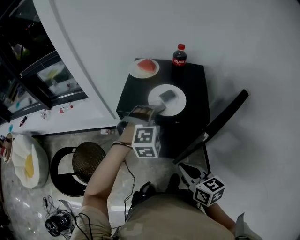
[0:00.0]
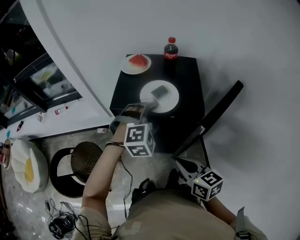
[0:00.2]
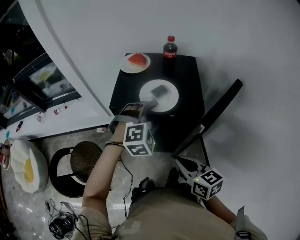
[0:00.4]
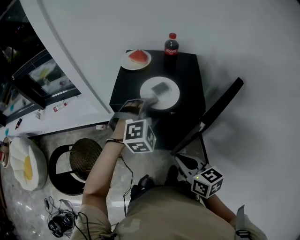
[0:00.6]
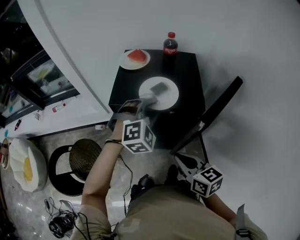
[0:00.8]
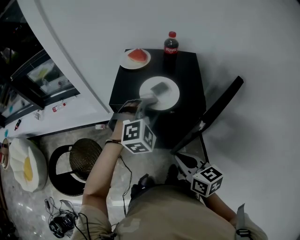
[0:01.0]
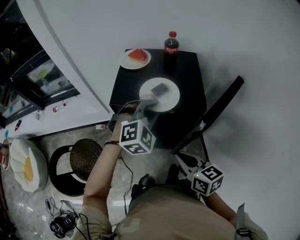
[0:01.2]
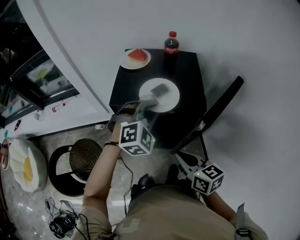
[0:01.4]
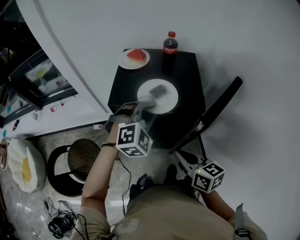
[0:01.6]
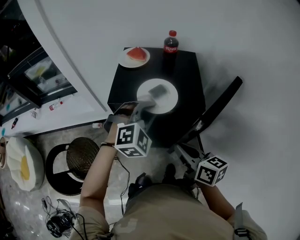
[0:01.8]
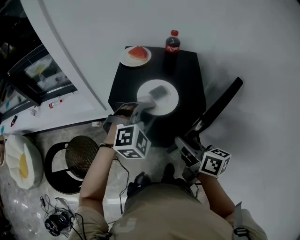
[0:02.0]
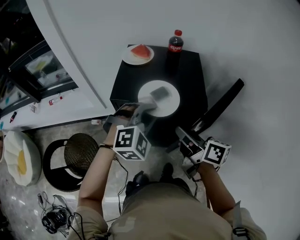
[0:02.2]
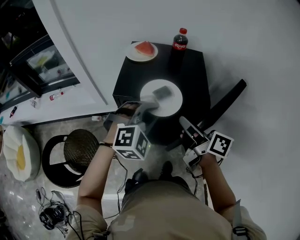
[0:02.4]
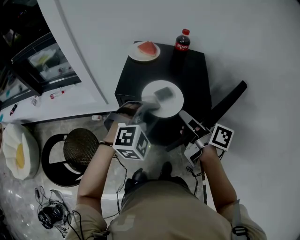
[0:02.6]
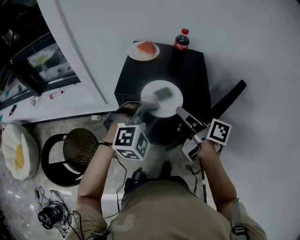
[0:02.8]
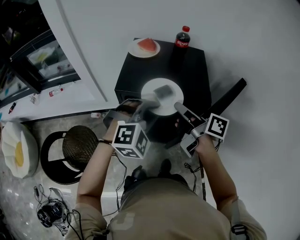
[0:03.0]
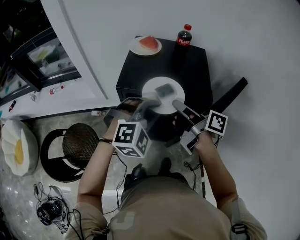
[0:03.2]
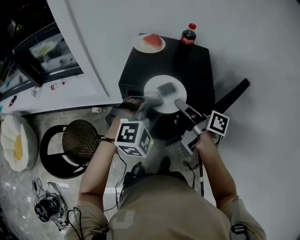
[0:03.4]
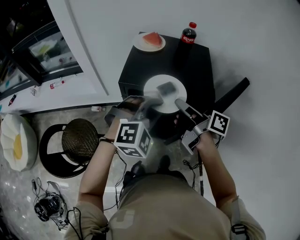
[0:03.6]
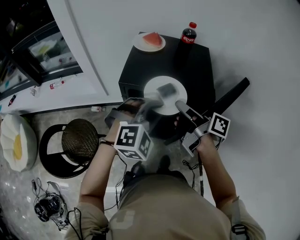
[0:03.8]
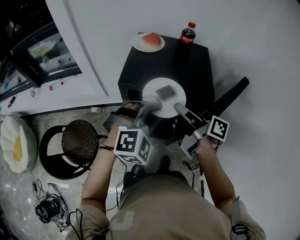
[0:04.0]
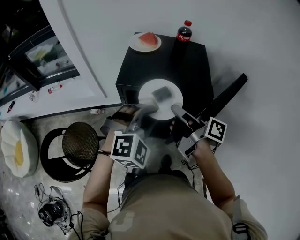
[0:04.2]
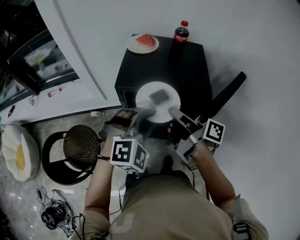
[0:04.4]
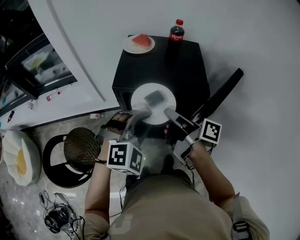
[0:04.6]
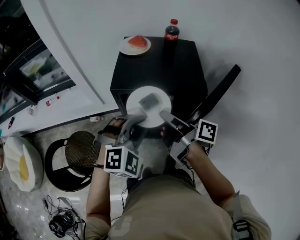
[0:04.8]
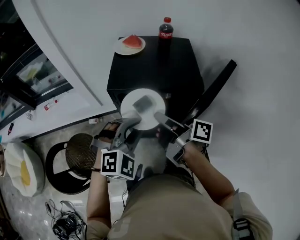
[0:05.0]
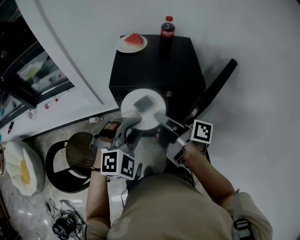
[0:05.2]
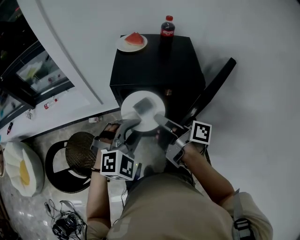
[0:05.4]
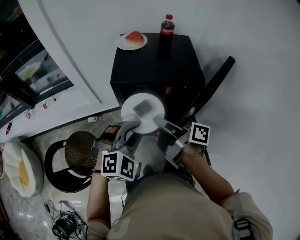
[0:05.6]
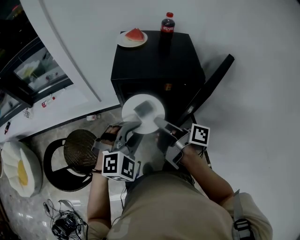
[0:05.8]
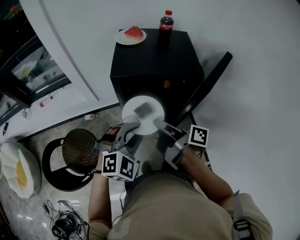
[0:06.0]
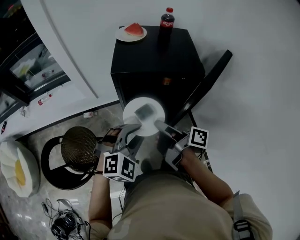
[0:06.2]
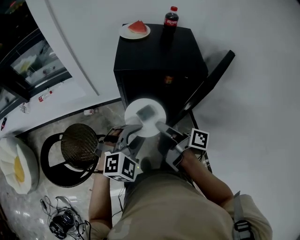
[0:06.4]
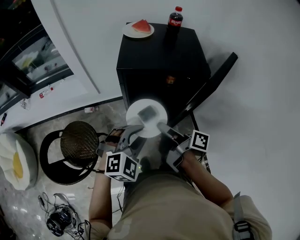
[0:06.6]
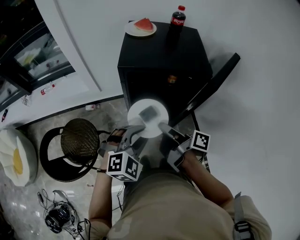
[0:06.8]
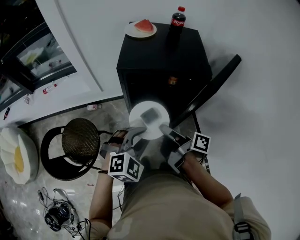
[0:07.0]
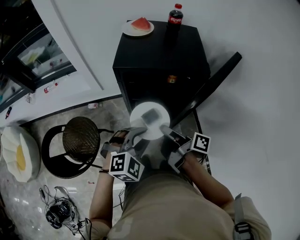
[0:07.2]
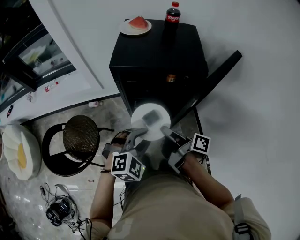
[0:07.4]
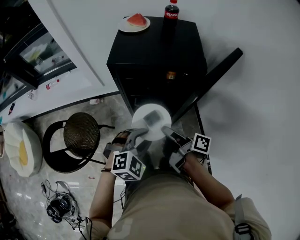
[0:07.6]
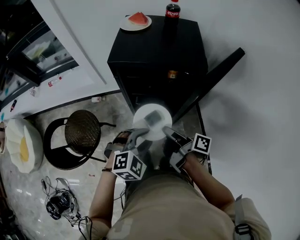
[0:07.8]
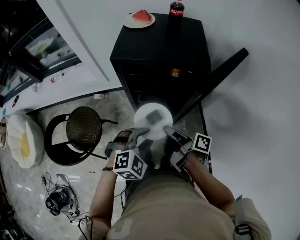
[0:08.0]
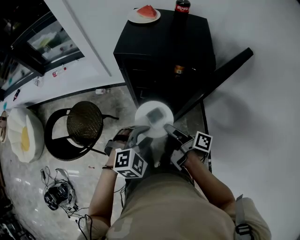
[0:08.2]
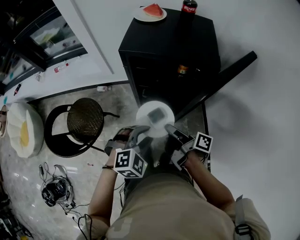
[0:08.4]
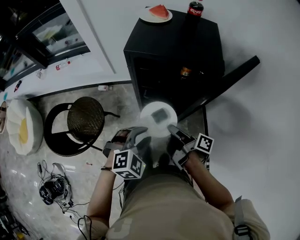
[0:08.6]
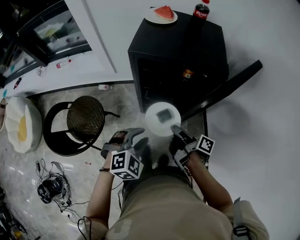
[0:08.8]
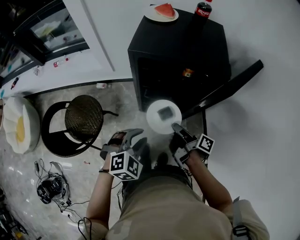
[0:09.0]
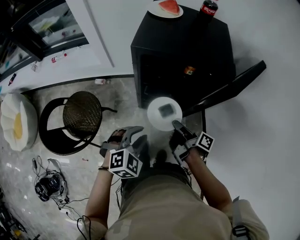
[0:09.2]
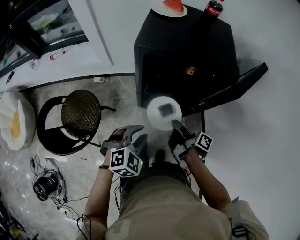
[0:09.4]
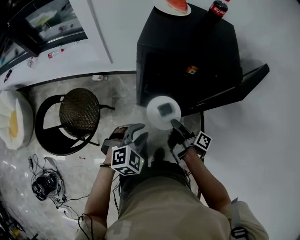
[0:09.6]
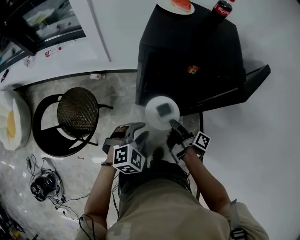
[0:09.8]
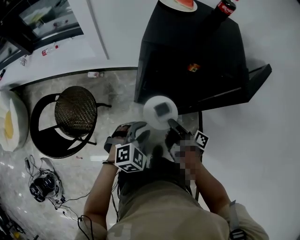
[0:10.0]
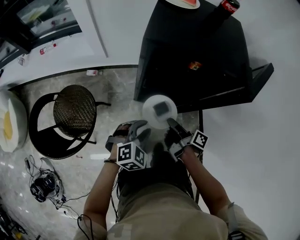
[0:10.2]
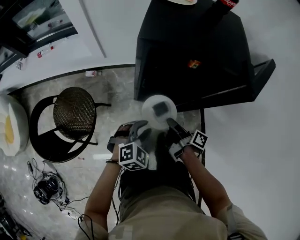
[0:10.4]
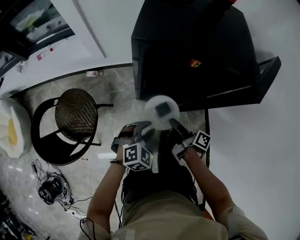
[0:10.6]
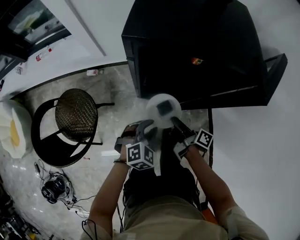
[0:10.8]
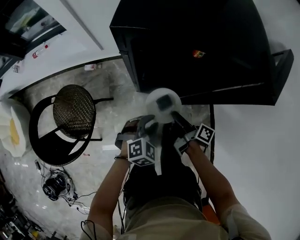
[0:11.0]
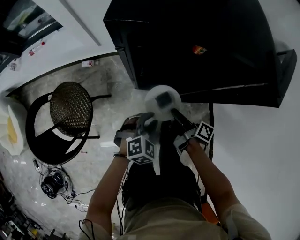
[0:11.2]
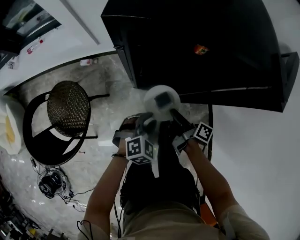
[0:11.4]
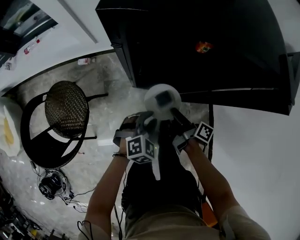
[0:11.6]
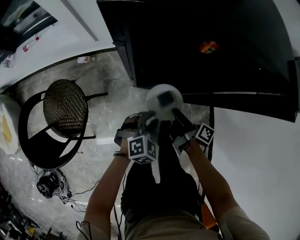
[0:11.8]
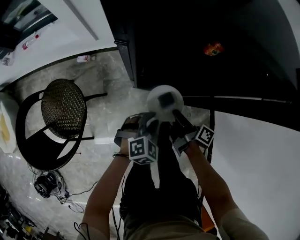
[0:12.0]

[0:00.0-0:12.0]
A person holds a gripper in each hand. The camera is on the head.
0:00.0 to 0:01.6: The left gripper closes its fingers.
0:01.6 to 0:03.0: The right gripper is displaced forward by approximately 10 cm, and turns by approximately 40 degrees. Meanwhile the left gripper ends up roughly 5 cm from where it was.
0:03.0 to 0:04.4: The grippers make only small movements.
0:04.4 to 0:06.0: Both grippers travel together backward, to the left and downward, about 10 cm.
0:06.0 to 0:07.6: The left gripper shifts about 10 cm downward, to the right and backward, while the right gripper heads downward and to the right, covering roughly 10 cm.
0:07.6 to 0:09.0: The left gripper moves to the left, about 5 cm. Meanwhile the right gripper heads downward, covering about 5 cm.
0:09.0 to 0:10.4: Both grippers travel together downward, some 10 cm.
0:10.4 to 0:12.0: The grippers both shift downward by approximately 15 cm.

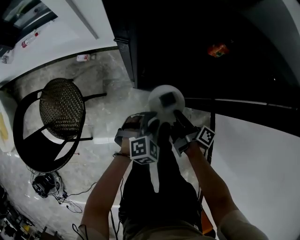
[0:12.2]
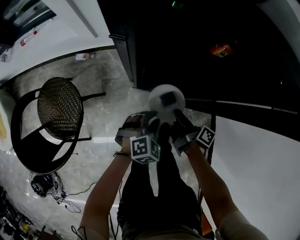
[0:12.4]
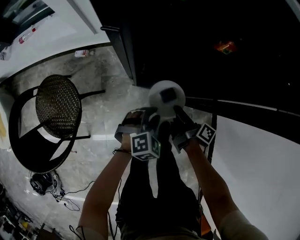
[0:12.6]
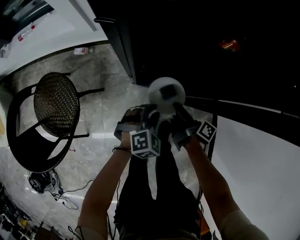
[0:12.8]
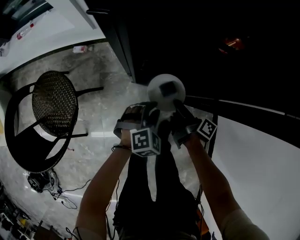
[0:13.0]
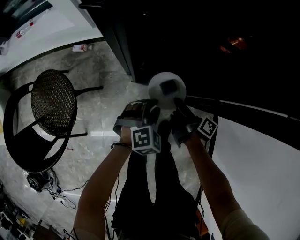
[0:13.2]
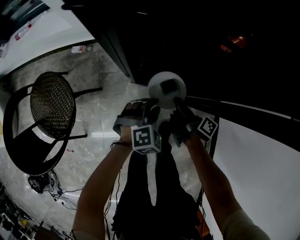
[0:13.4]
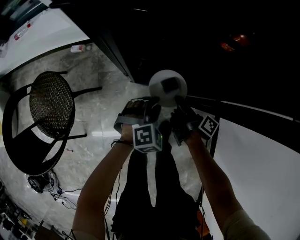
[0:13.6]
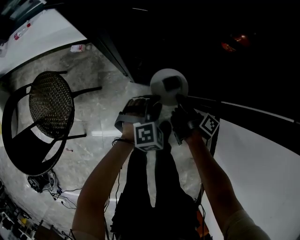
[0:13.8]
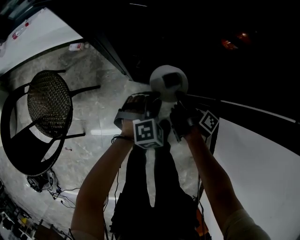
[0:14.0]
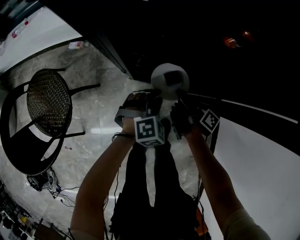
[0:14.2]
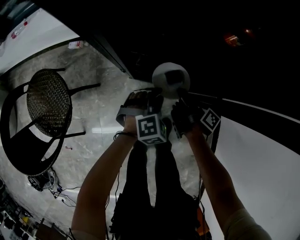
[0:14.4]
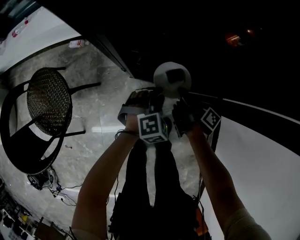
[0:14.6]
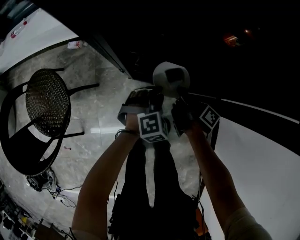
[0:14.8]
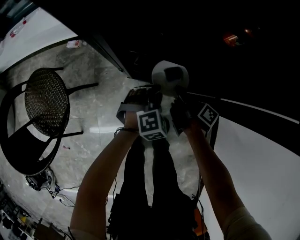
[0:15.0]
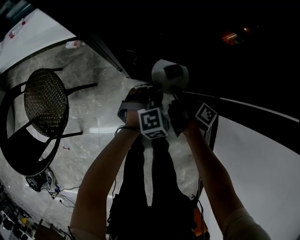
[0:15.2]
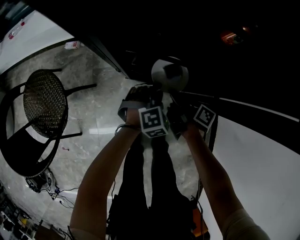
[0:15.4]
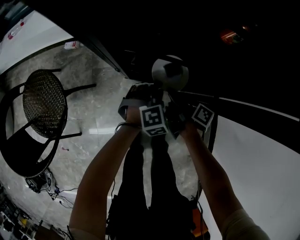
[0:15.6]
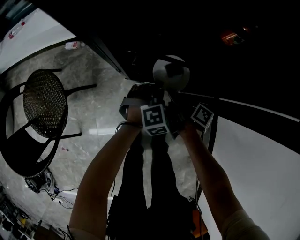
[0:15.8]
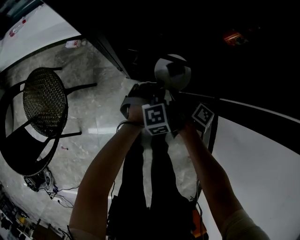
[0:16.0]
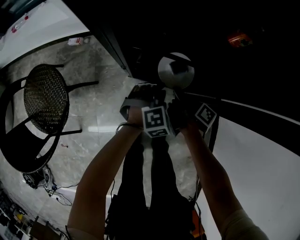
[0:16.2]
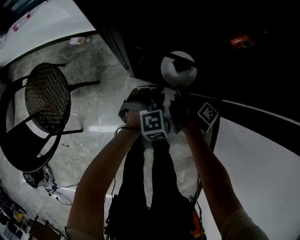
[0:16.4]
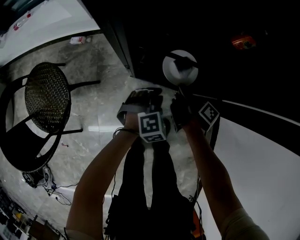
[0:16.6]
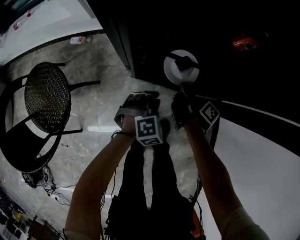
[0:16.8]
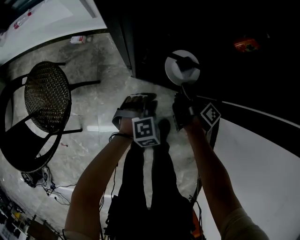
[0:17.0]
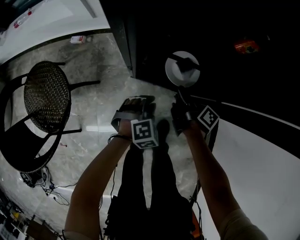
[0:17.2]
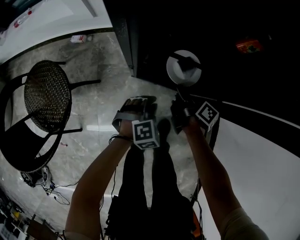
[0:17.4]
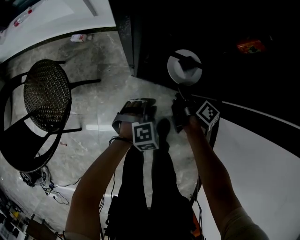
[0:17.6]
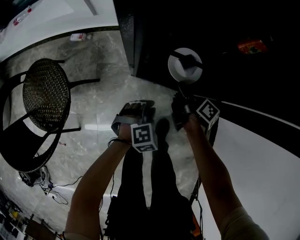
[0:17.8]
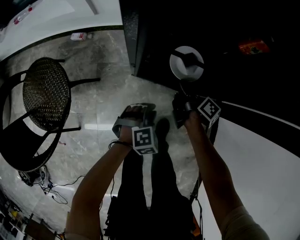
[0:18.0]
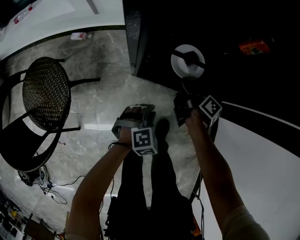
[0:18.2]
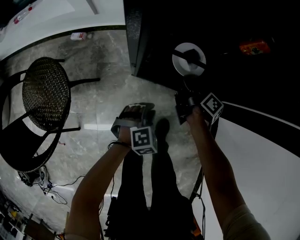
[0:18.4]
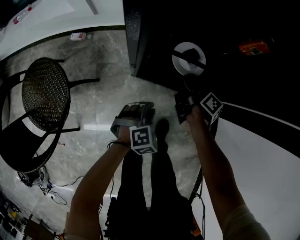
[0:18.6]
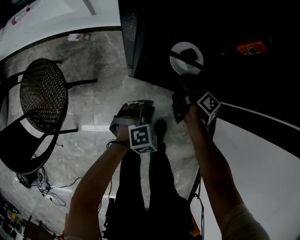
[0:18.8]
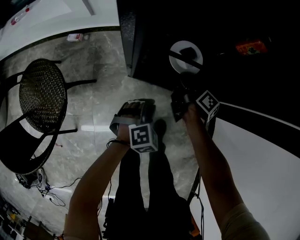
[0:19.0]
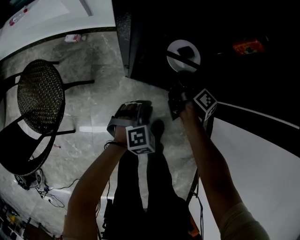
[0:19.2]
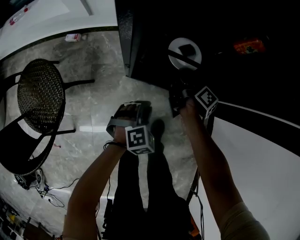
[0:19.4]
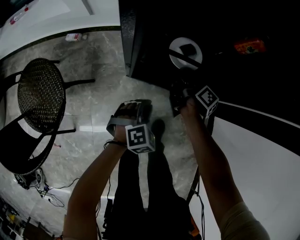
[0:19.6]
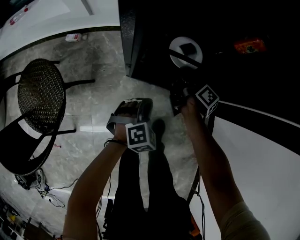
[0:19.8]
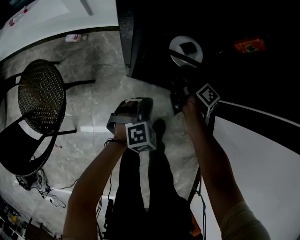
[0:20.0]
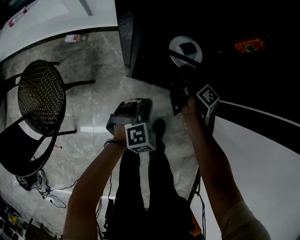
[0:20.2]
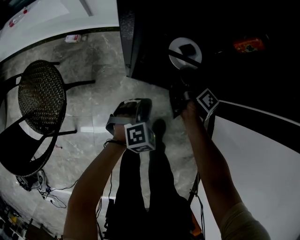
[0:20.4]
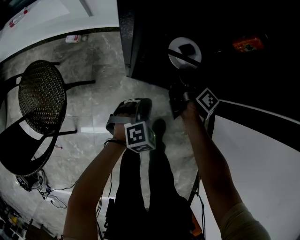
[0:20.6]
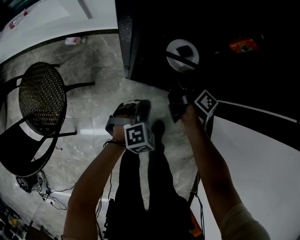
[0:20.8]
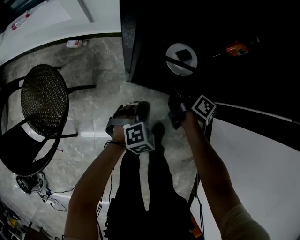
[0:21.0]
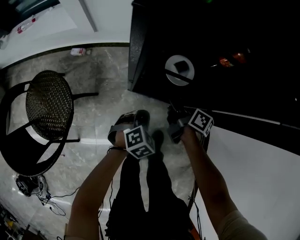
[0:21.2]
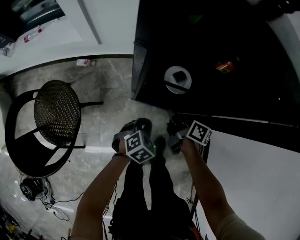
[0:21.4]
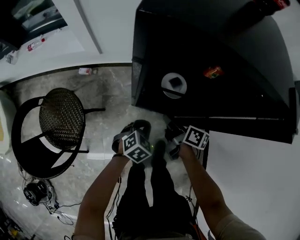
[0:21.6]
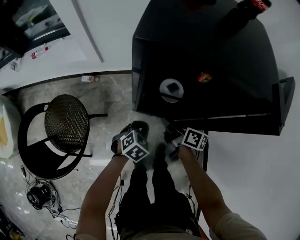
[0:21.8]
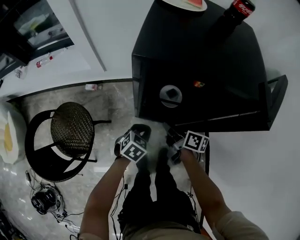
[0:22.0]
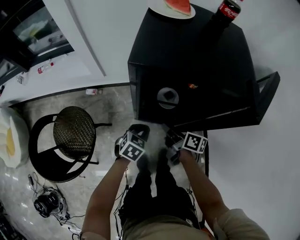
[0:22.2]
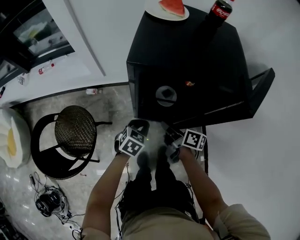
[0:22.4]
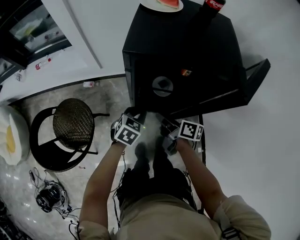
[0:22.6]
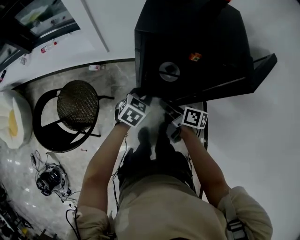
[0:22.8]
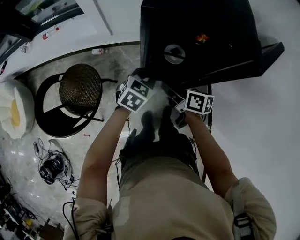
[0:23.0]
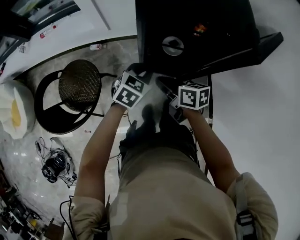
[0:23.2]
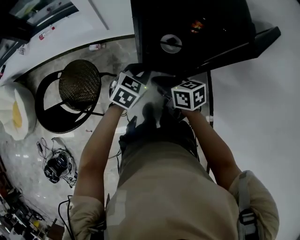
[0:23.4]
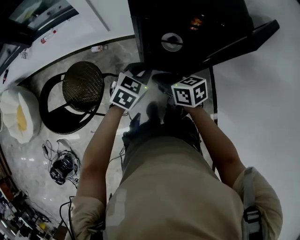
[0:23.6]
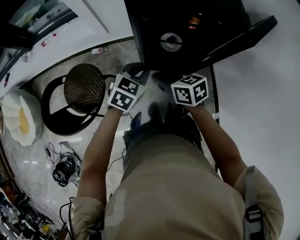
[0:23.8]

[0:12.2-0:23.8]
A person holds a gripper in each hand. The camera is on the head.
0:12.2 to 0:13.6: The grippers both shift downward and forward by some 10 cm.
0:13.6 to 0:15.0: The grippers stay close to where they were, moving slightly.
0:15.0 to 0:16.6: There are only small adjustments of the grippers.
0:16.6 to 0:18.0: The left gripper heads backward, covering approximately 5 cm.
0:18.0 to 0:19.4: The right gripper heads forward, covering approximately 5 cm.
0:19.4 to 0:21.0: The right gripper shifts by roughly 5 cm.
0:21.0 to 0:22.4: Both grippers travel together upward, roughly 20 cm. The left gripper changes its angle by some 30 degrees.
0:22.4 to 0:23.8: The left gripper shifts approximately 10 cm upward; the right gripper heads to the left, upward and backward, covering approximately 15 cm, and changes its angle by approximately 40 degrees.
